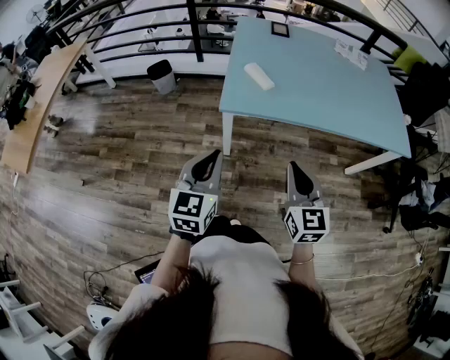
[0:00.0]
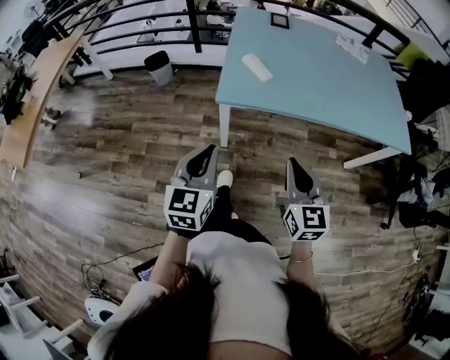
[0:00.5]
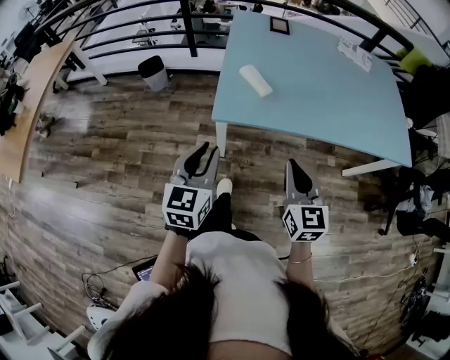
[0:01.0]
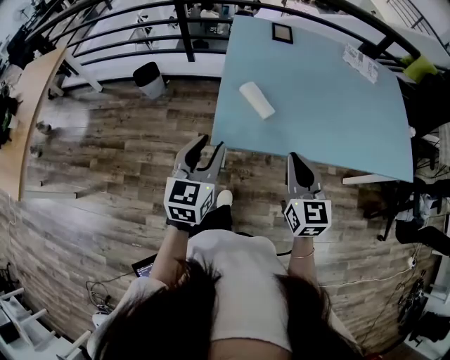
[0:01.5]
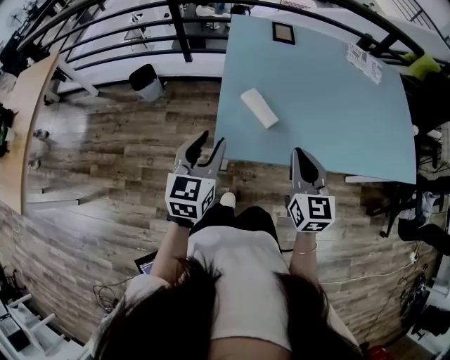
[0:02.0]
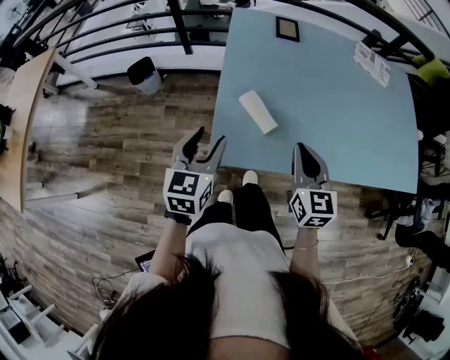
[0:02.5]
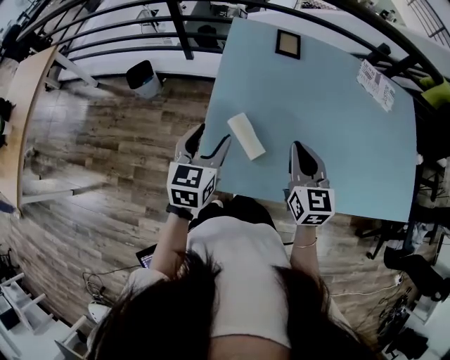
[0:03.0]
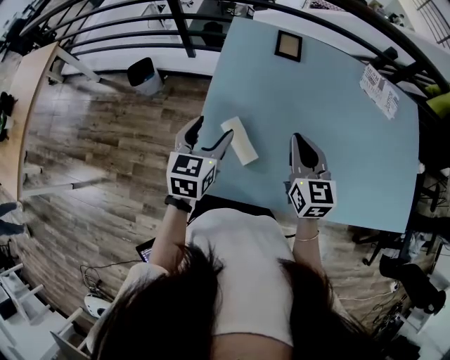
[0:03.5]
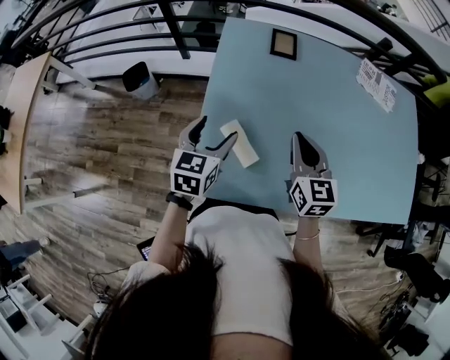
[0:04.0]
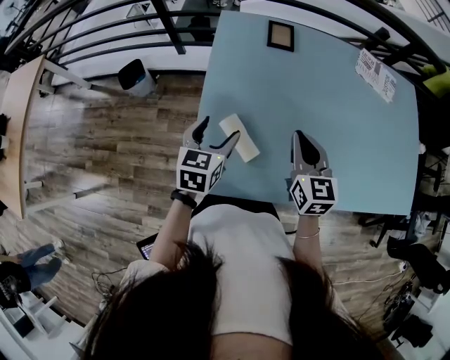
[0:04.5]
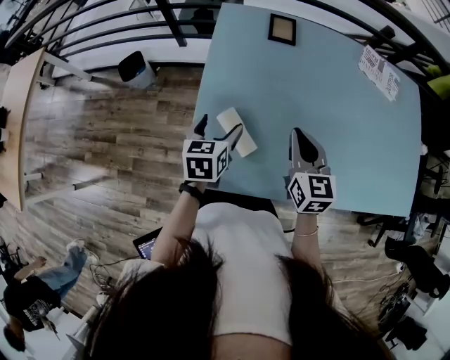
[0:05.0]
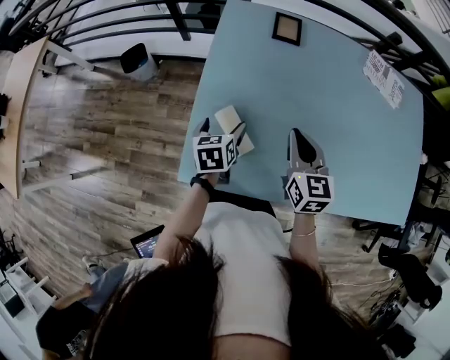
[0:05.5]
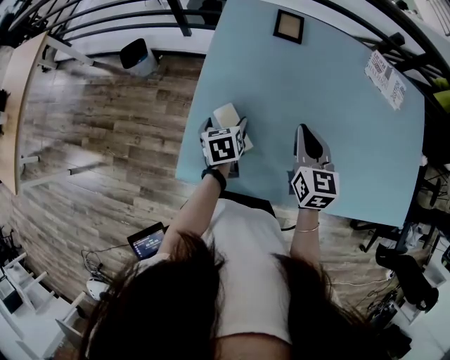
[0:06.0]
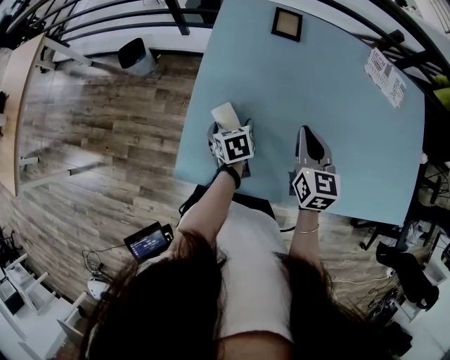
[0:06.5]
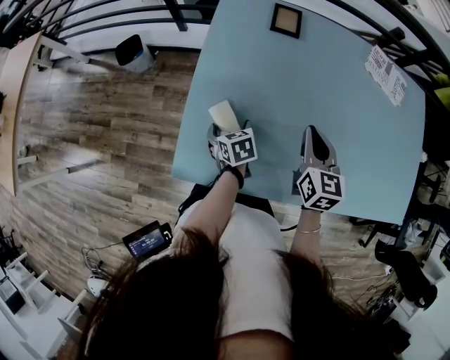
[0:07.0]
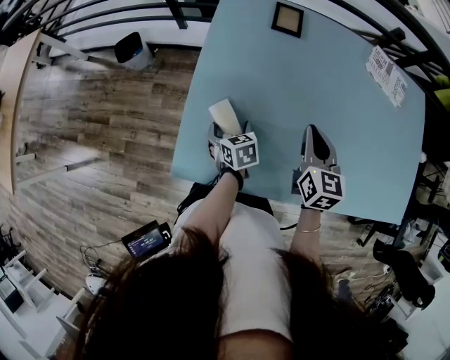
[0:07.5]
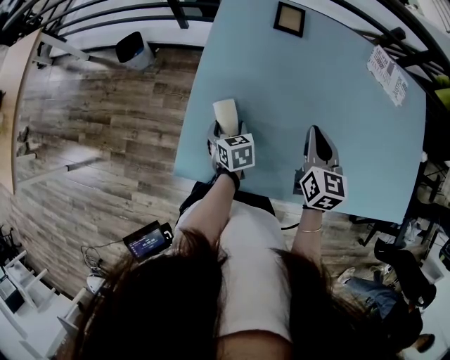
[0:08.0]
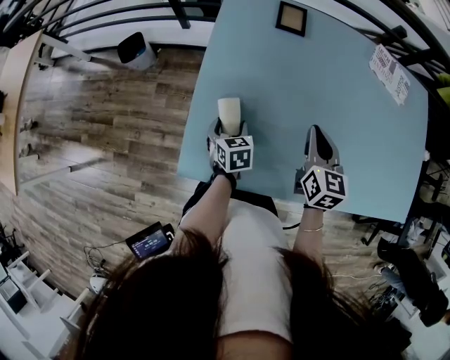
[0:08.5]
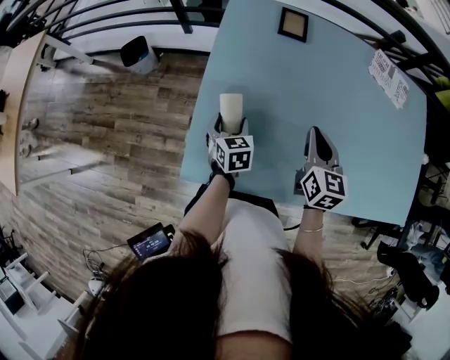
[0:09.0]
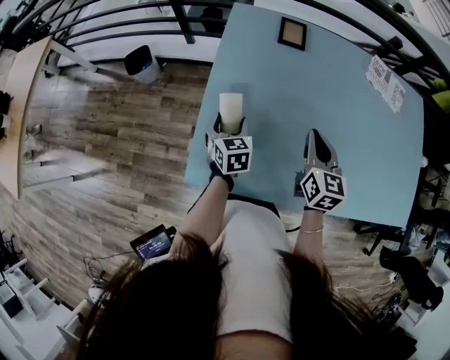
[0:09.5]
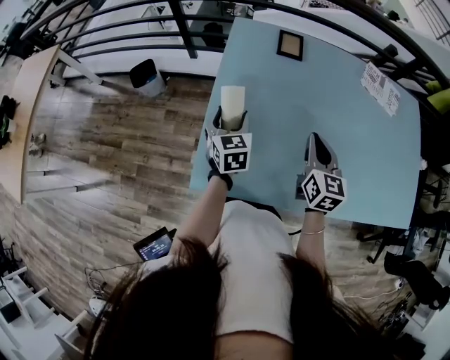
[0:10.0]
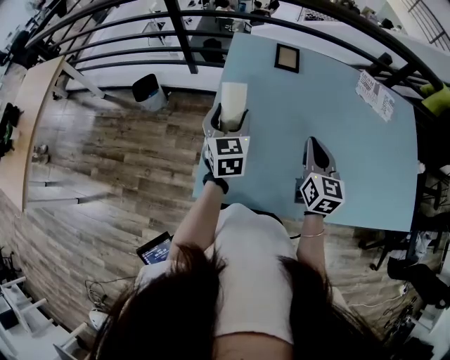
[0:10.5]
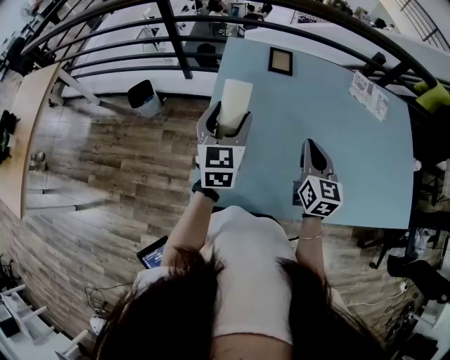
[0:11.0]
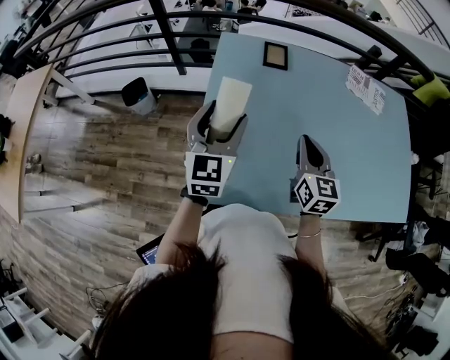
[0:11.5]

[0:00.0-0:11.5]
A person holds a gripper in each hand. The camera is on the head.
0:00.0 to 0:02.0: The grippers both shift forward by about 30 cm.
0:02.0 to 0:04.0: Both grippers move forward, some 20 cm. The left gripper opens.
0:04.0 to 0:06.0: The left gripper is displaced downward by about 15 cm, and changes its angle by roughly 40 degrees, while the right gripper shifts by about 5 cm.
0:06.0 to 0:07.5: The left gripper moves some 5 cm.
0:07.5 to 0:09.5: The left gripper goes approximately 5 cm upward.
0:09.5 to 0:11.5: The left gripper goes about 25 cm upward, and angles its fingers upward, by roughly 30 degrees. The right gripper goes some 5 cm upward.

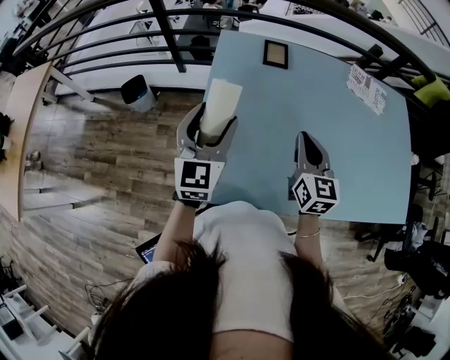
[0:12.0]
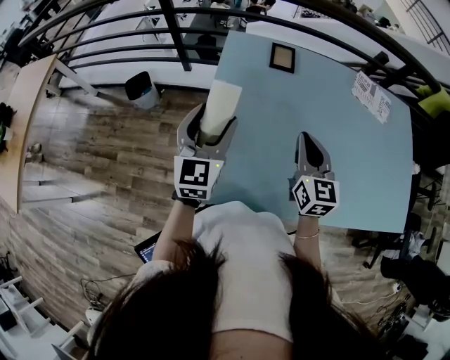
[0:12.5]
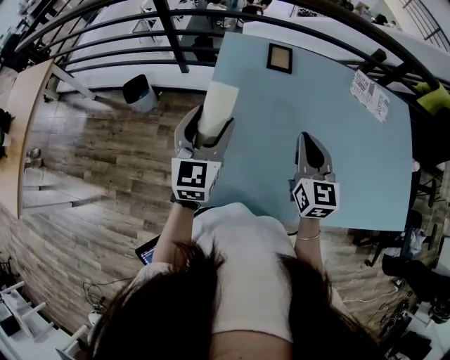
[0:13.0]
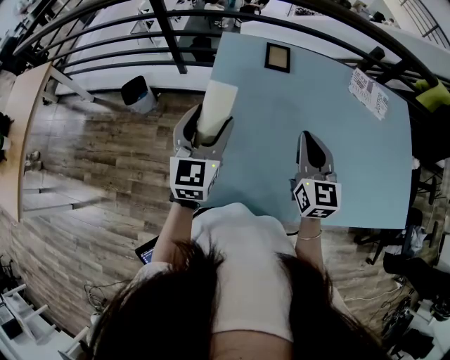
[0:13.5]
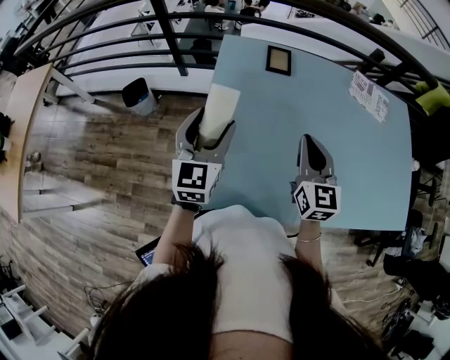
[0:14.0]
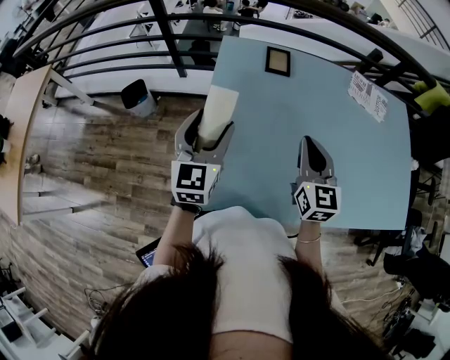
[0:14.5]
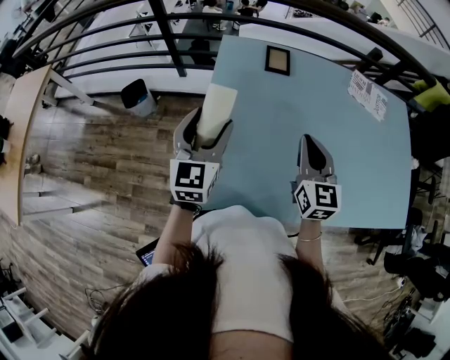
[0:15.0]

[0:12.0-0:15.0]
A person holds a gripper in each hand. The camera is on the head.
0:12.0 to 0:13.5: The grippers stay close to where they were, moving slightly.
0:13.5 to 0:15.0: Both grippers stay put.

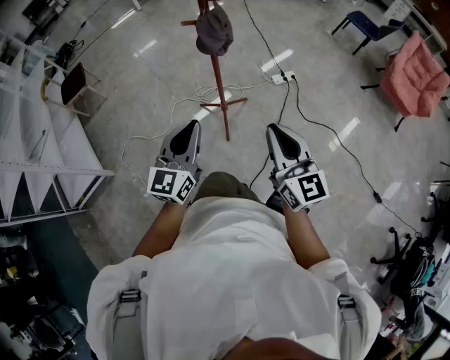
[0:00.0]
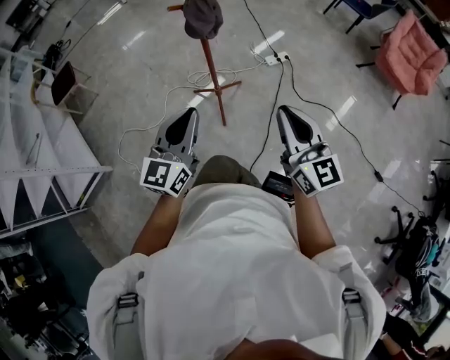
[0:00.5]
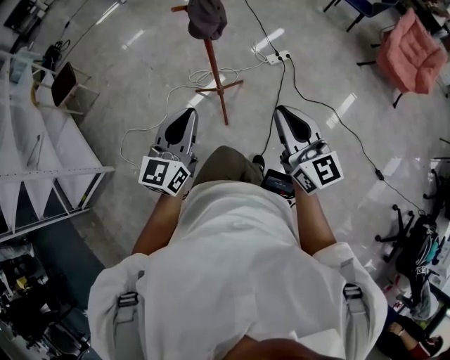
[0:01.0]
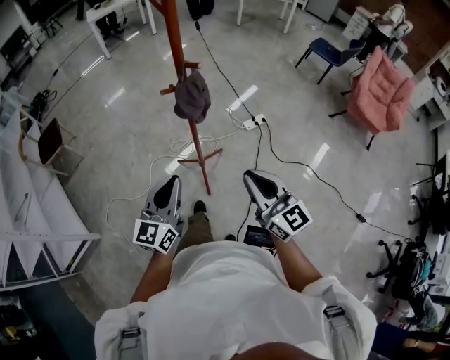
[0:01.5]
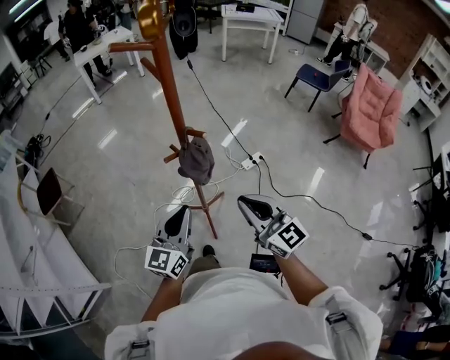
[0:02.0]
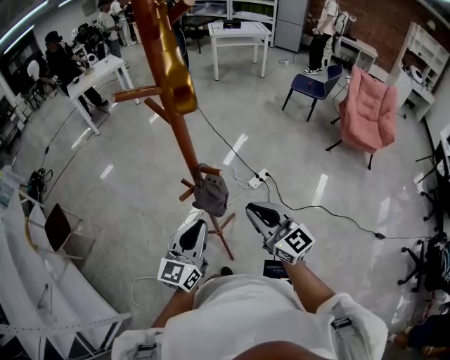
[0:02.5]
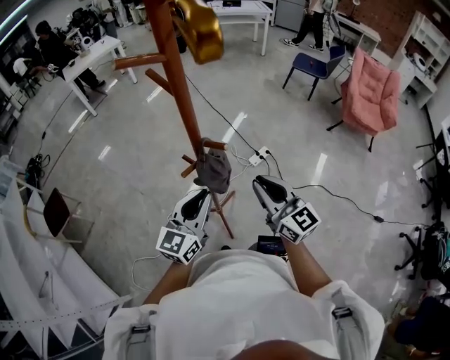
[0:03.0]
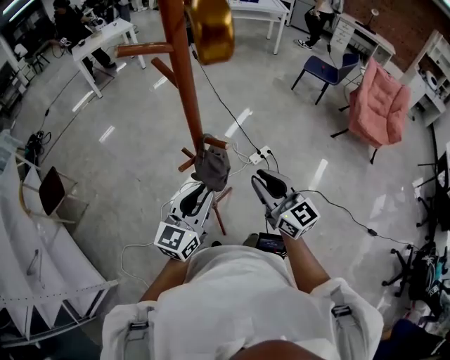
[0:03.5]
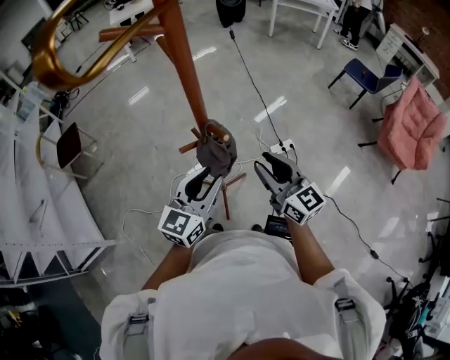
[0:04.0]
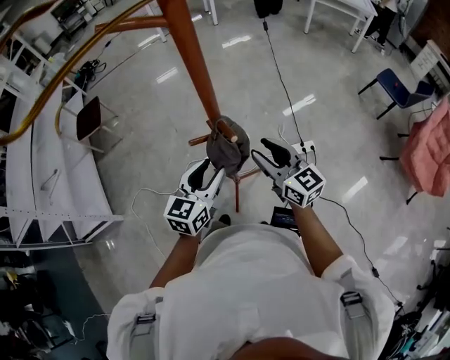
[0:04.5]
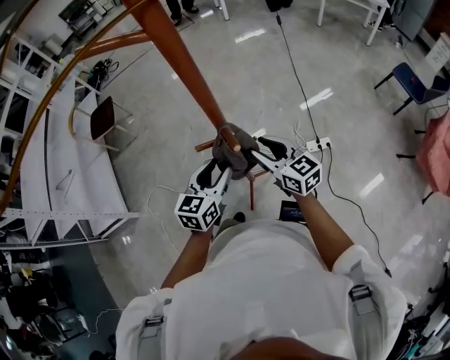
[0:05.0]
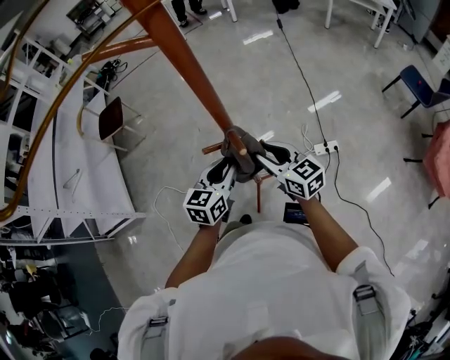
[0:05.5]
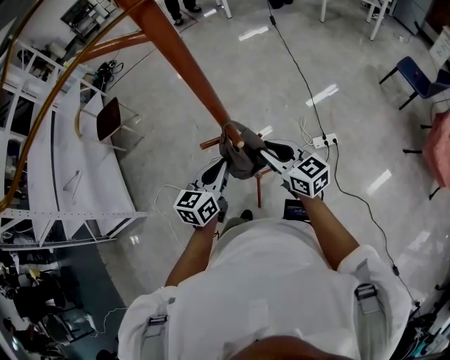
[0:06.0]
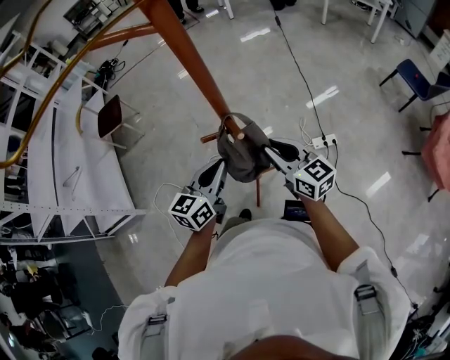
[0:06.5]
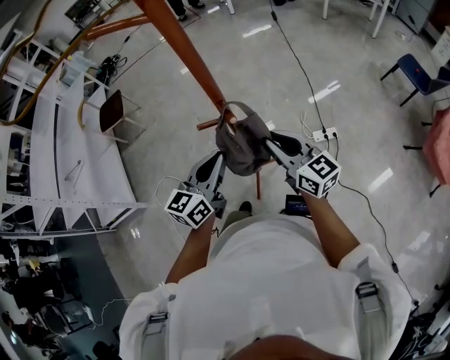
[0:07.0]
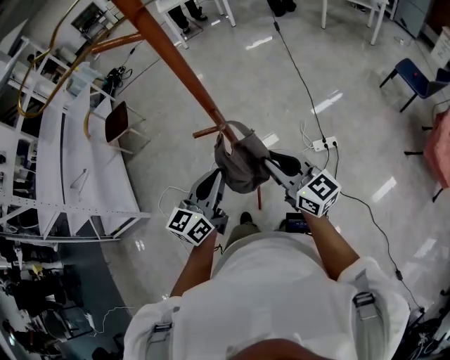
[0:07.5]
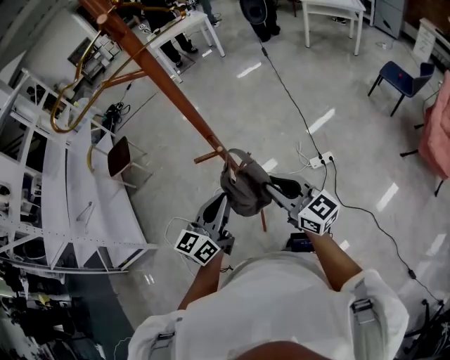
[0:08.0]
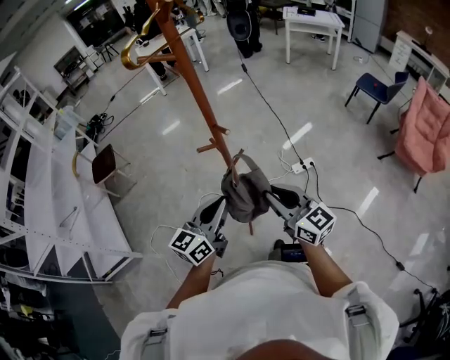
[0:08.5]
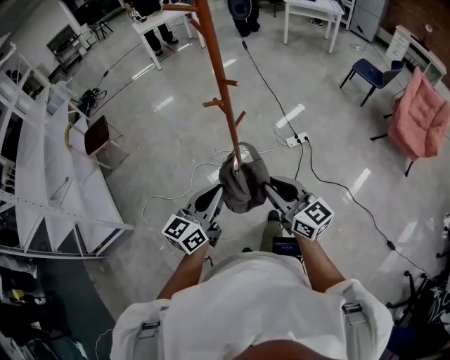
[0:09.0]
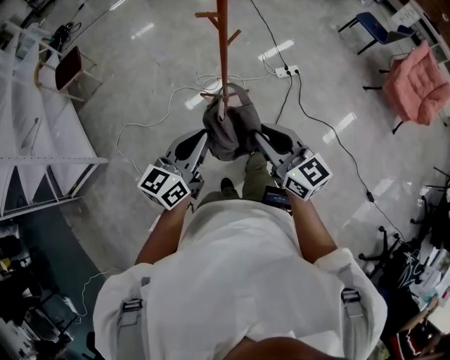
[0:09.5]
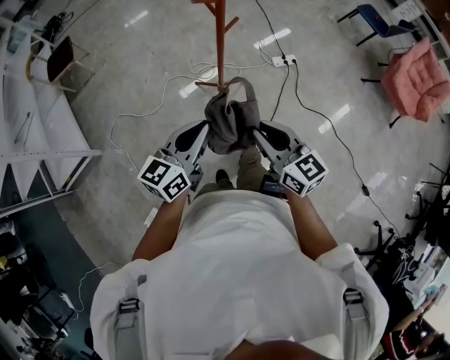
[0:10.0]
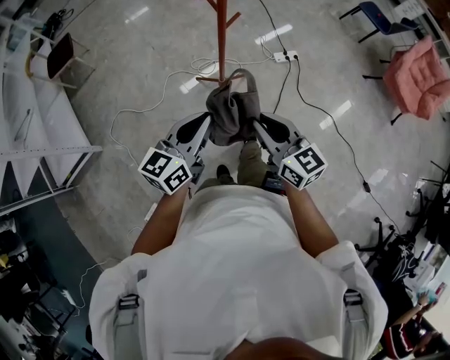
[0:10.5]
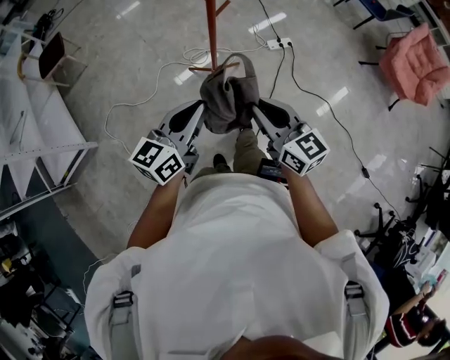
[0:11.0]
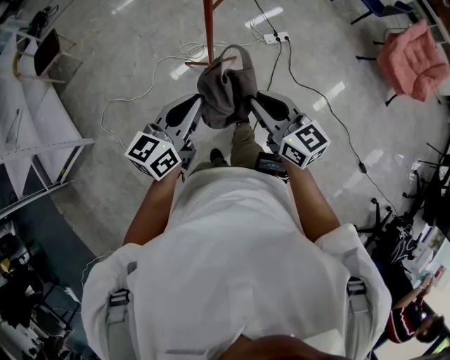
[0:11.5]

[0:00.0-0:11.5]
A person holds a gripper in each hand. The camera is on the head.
0:00.0 to 0:02.0: Both grippers move forward, some 20 cm.
0:02.0 to 0:04.0: The right gripper goes roughly 15 cm forward, and opens. Meanwhile the left gripper shifts roughly 10 cm forward and to the right, and opens its fingers.
0:04.0 to 0:06.0: The right gripper goes roughly 10 cm forward and downward, and changes its angle by about 20 degrees. Meanwhile the left gripper travels downward and forward by approximately 10 cm, rotates some 20 degrees, and closes.
0:06.0 to 0:07.5: Both grippers move backward and upward, some 10 cm.
0:07.5 to 0:09.5: The right gripper travels backward by about 30 cm, while the left gripper travels backward and to the left by roughly 25 cm.
0:09.5 to 0:11.5: The left gripper changes place by approximately 5 cm. Meanwhile the right gripper is displaced downward by roughly 5 cm.

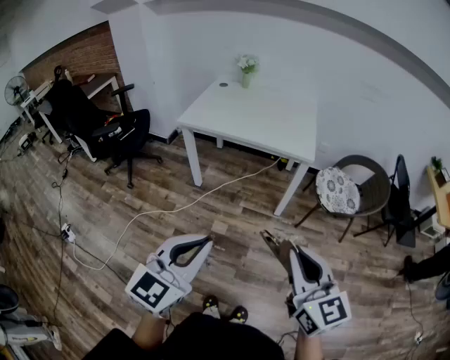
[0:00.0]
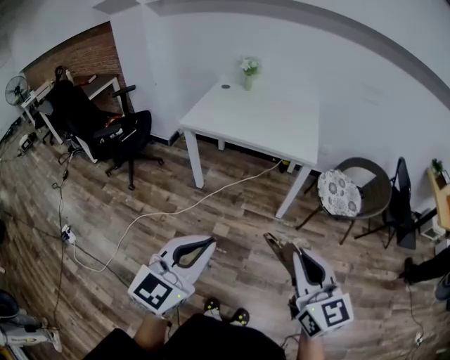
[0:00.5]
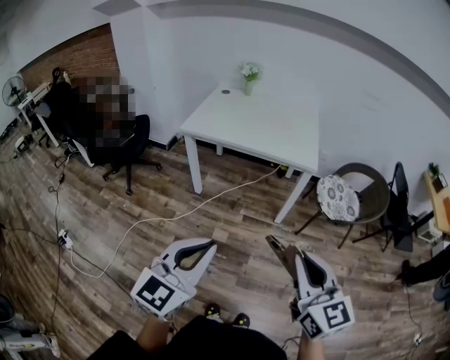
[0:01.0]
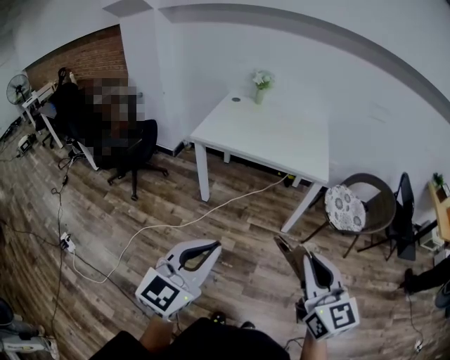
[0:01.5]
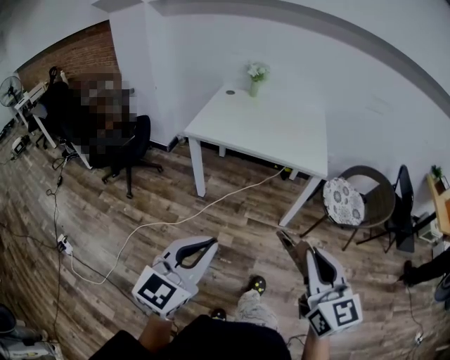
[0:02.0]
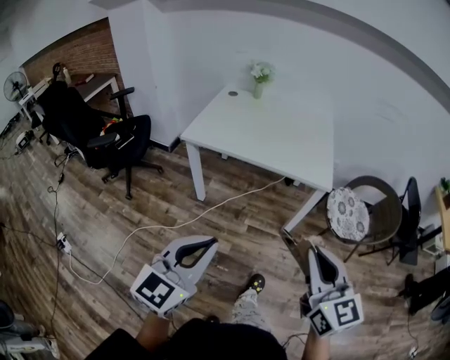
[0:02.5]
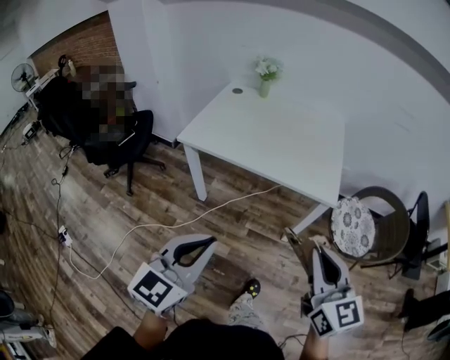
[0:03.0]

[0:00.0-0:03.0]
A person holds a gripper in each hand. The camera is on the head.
0:00.0 to 0:01.5: Both grippers travel together to the left, approximately 10 cm.
0:01.5 to 0:03.0: Both grippers travel together forward, some 25 cm.
